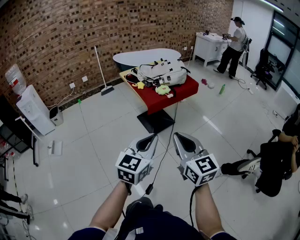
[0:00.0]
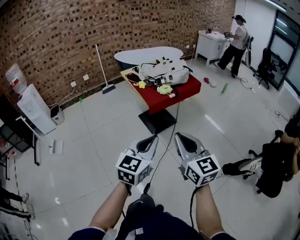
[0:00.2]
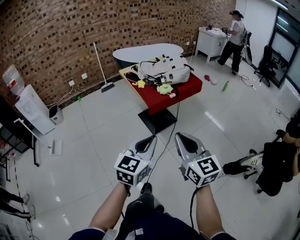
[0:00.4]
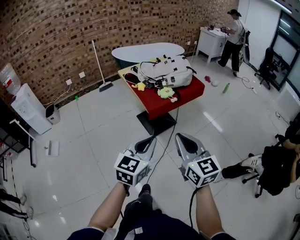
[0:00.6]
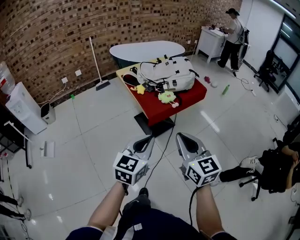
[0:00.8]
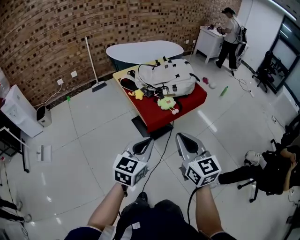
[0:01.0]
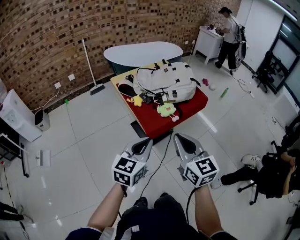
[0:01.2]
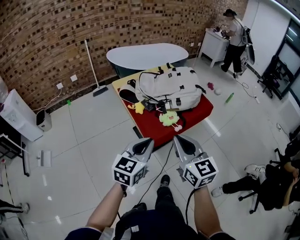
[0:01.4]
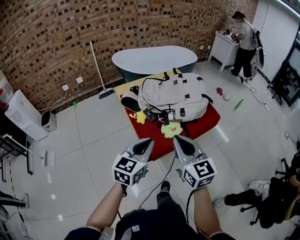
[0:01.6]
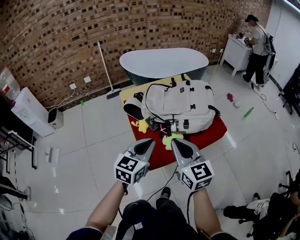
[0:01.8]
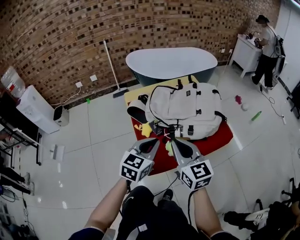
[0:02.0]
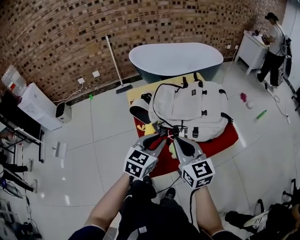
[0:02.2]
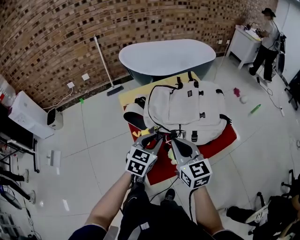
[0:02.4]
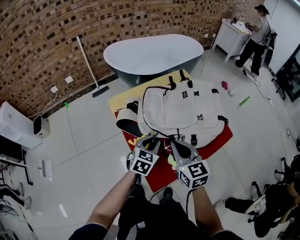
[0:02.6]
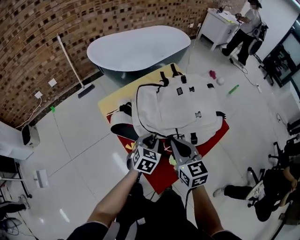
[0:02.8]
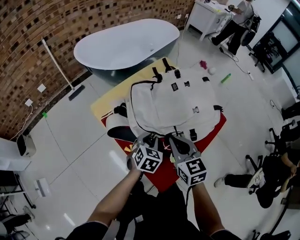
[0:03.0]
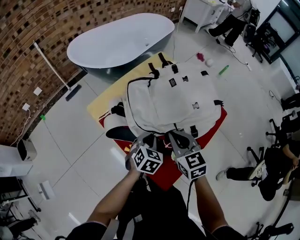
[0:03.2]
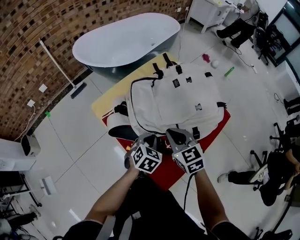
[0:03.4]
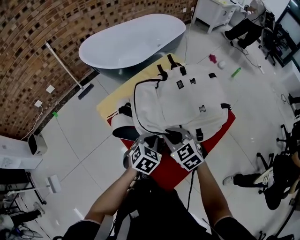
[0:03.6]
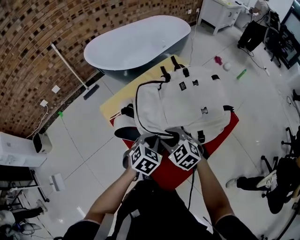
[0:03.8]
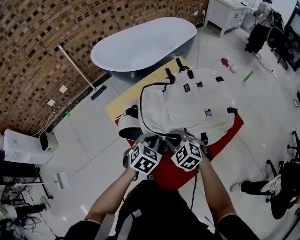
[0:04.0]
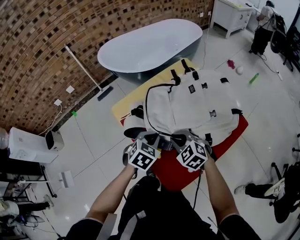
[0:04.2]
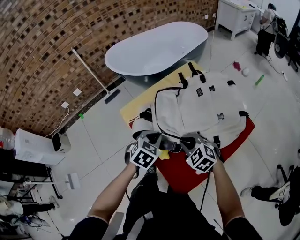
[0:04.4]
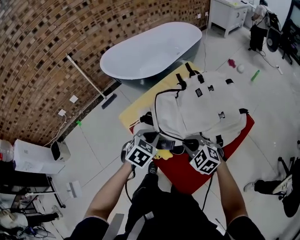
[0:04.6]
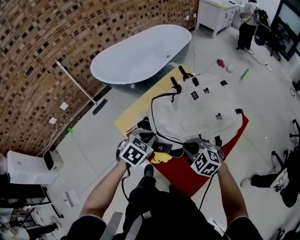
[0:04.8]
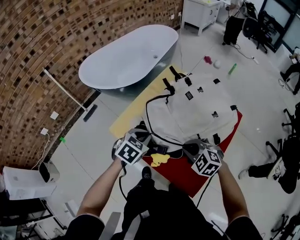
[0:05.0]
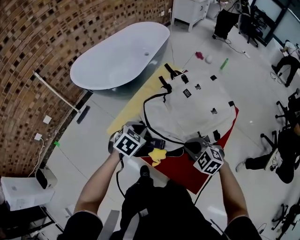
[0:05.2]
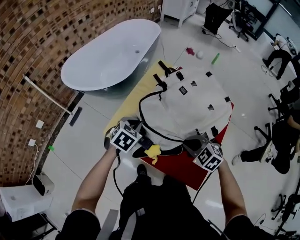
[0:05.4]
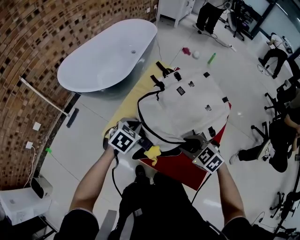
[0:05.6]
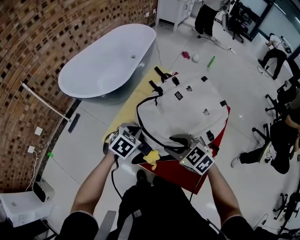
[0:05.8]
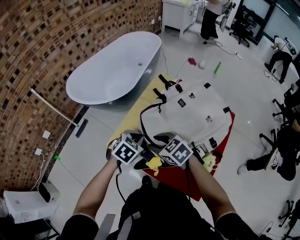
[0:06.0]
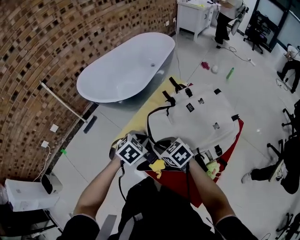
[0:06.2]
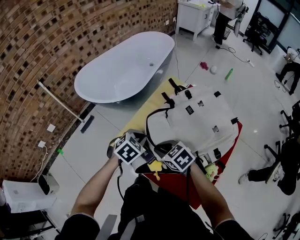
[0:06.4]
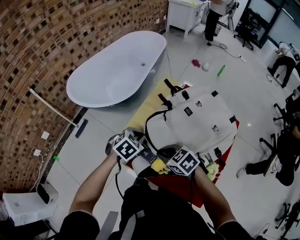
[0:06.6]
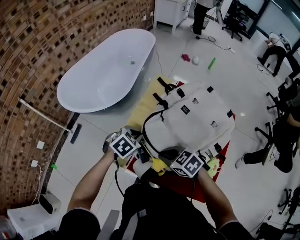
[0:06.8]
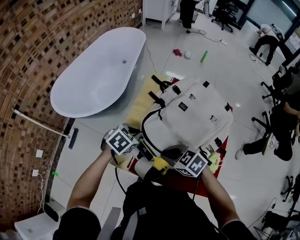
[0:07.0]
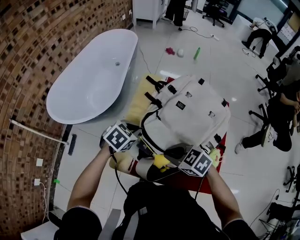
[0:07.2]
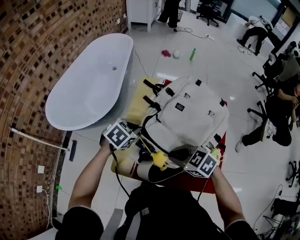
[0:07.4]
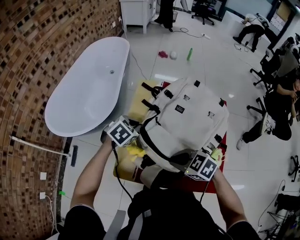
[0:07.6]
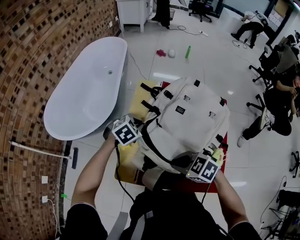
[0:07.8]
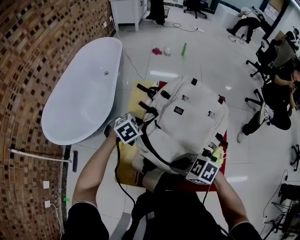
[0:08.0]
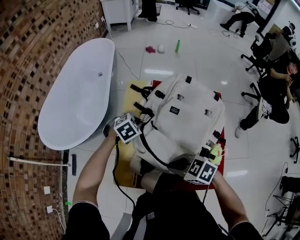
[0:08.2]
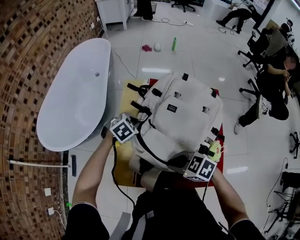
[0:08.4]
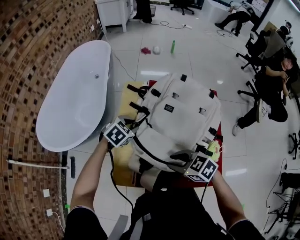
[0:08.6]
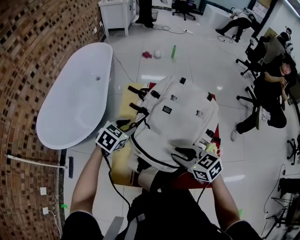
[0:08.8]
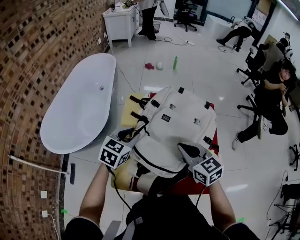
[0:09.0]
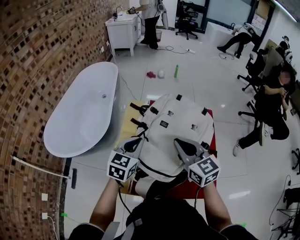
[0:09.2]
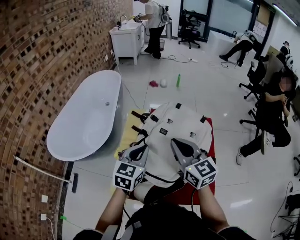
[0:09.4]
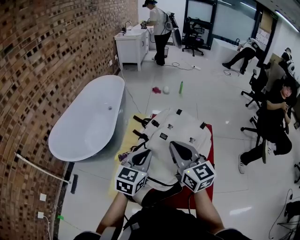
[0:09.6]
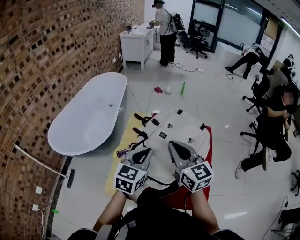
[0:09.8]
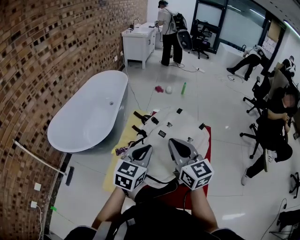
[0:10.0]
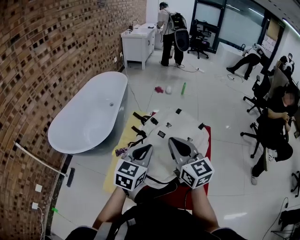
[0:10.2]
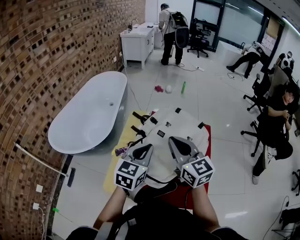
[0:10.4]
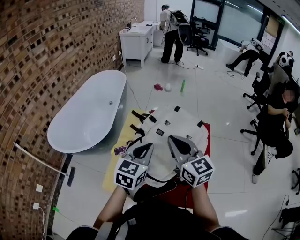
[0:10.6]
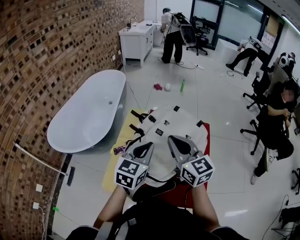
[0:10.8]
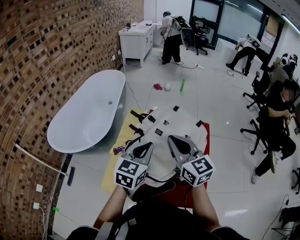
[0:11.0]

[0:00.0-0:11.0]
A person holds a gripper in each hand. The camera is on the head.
0:00.0 to 0:01.6: The two grippers travel together, forward, roughly 40 cm.
0:01.6 to 0:03.2: Both grippers move forward and downward, approximately 30 cm. The right gripper turns by roughly 30 degrees; the left gripper points its fingers approximately 30 degrees further downward.
0:03.2 to 0:04.8: The left gripper travels to the left, upward and forward by about 15 cm. The right gripper heads downward, covering about 5 cm, swivels approximately 40 degrees, and opens, then closes once more.
0:04.8 to 0:06.2: The right gripper moves to the left and forward, some 15 cm, changes its angle by approximately 30 degrees, and opens, then closes again; the left gripper goes about 10 cm forward.
0:06.2 to 0:07.8: The left gripper changes place by about 15 cm, and changes its angle by some 30 degrees.
0:07.8 to 0:09.4: Both grippers travel together upward, some 15 cm. The right gripper tilts its fingers approximately 40 degrees upward, while the left gripper angles its fingers upward, by roughly 40 degrees, and opens and closes again.
0:09.4 to 0:11.0: The left gripper is displaced to the right by about 5 cm.

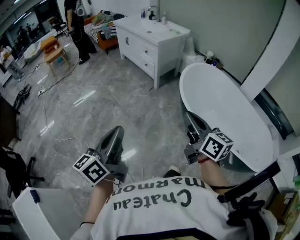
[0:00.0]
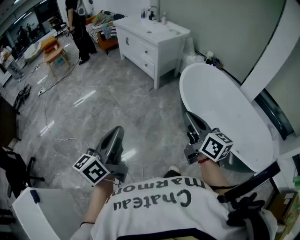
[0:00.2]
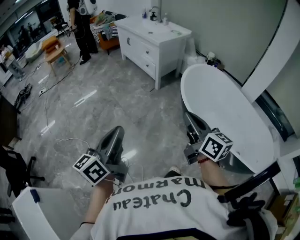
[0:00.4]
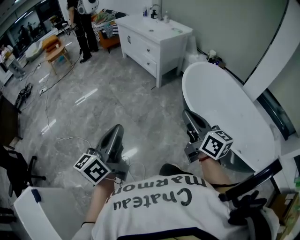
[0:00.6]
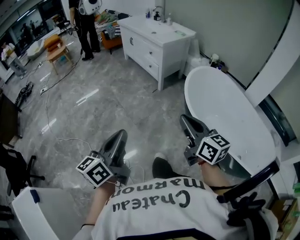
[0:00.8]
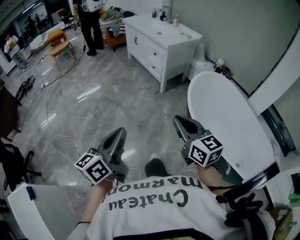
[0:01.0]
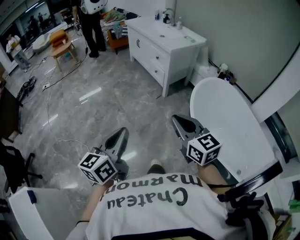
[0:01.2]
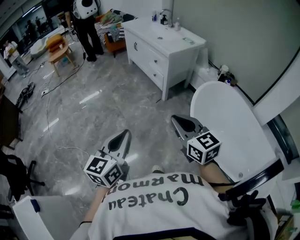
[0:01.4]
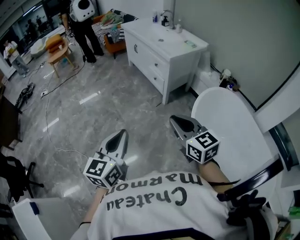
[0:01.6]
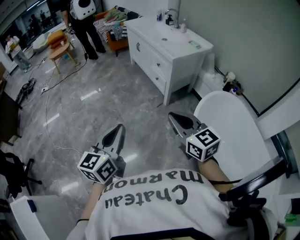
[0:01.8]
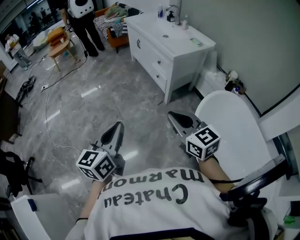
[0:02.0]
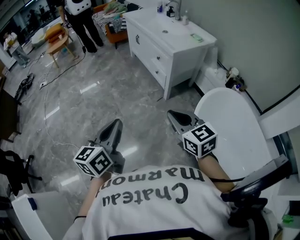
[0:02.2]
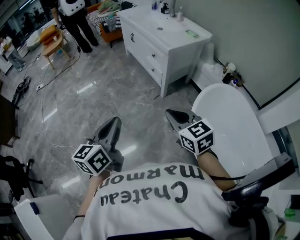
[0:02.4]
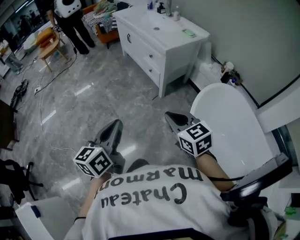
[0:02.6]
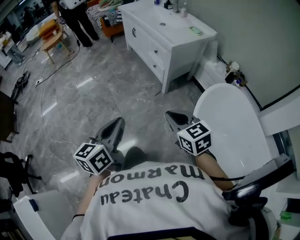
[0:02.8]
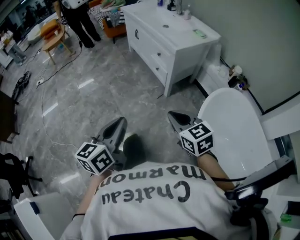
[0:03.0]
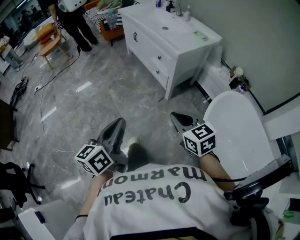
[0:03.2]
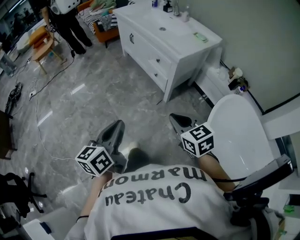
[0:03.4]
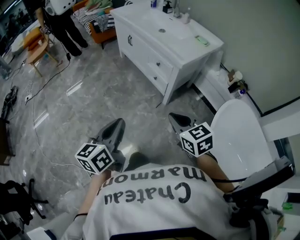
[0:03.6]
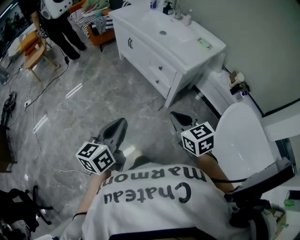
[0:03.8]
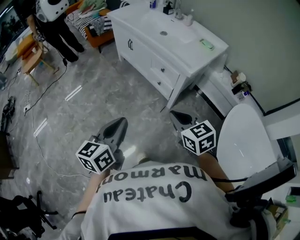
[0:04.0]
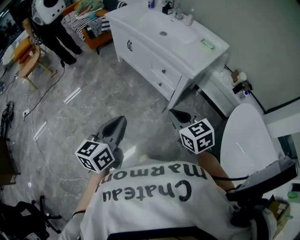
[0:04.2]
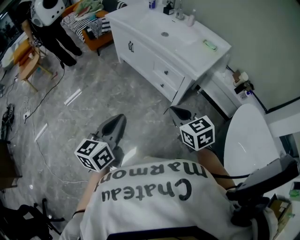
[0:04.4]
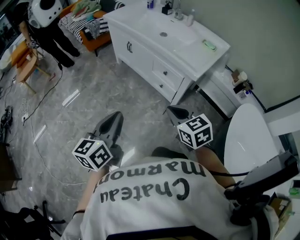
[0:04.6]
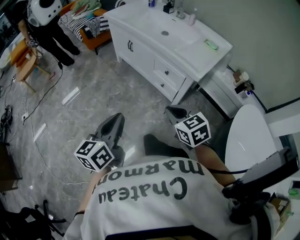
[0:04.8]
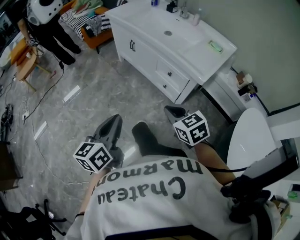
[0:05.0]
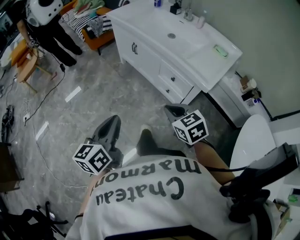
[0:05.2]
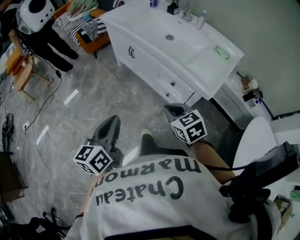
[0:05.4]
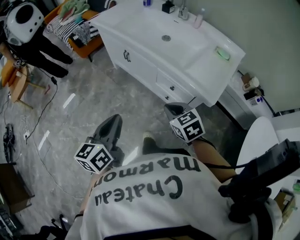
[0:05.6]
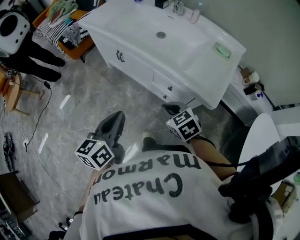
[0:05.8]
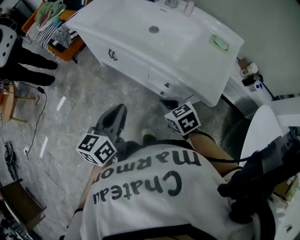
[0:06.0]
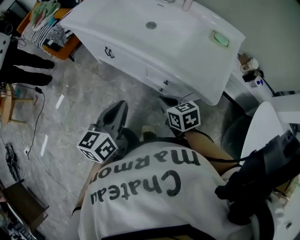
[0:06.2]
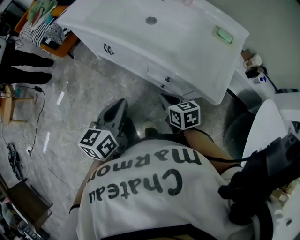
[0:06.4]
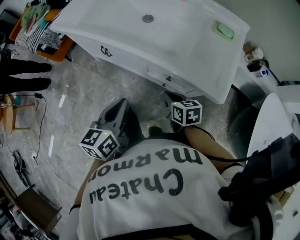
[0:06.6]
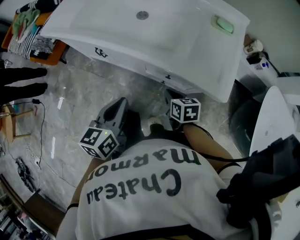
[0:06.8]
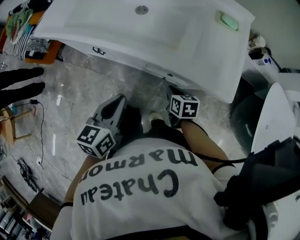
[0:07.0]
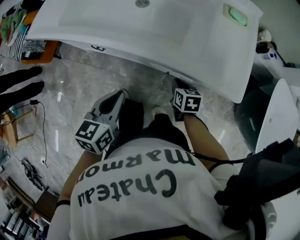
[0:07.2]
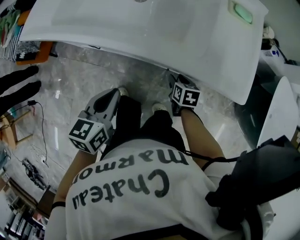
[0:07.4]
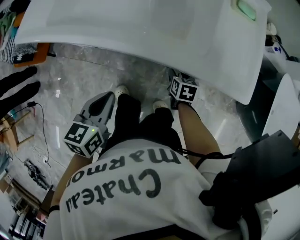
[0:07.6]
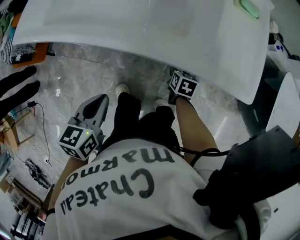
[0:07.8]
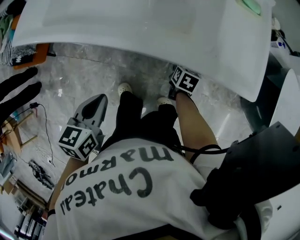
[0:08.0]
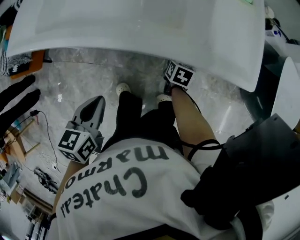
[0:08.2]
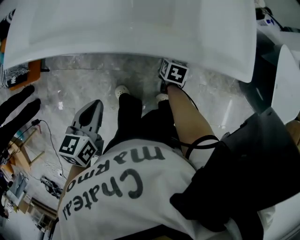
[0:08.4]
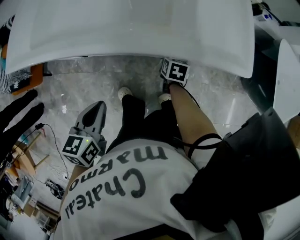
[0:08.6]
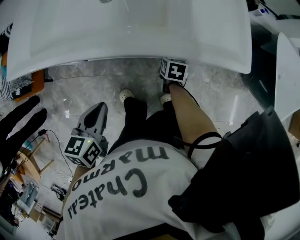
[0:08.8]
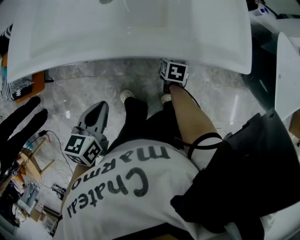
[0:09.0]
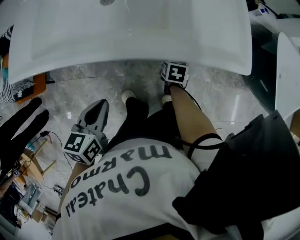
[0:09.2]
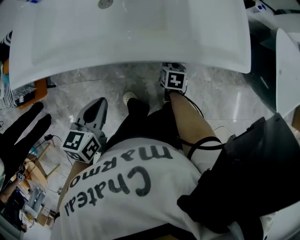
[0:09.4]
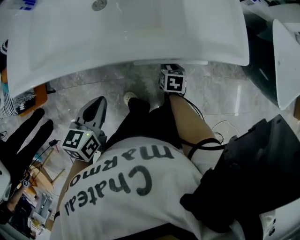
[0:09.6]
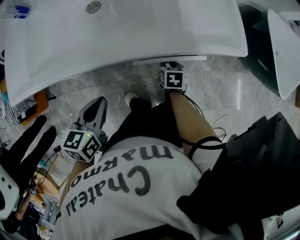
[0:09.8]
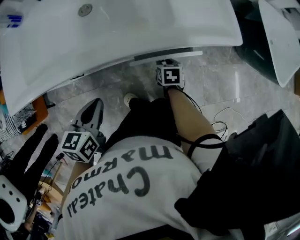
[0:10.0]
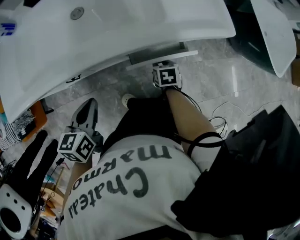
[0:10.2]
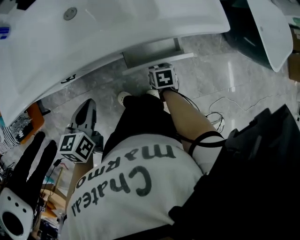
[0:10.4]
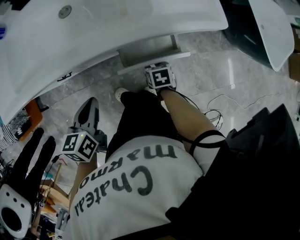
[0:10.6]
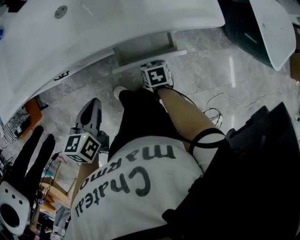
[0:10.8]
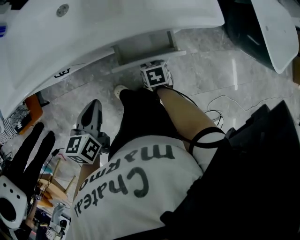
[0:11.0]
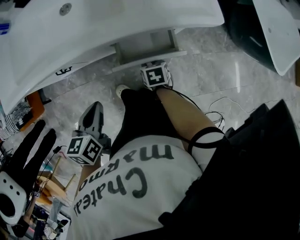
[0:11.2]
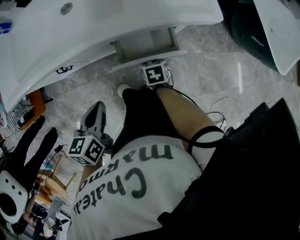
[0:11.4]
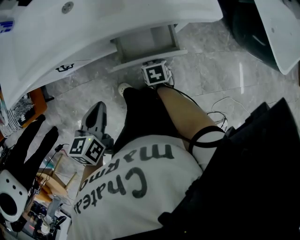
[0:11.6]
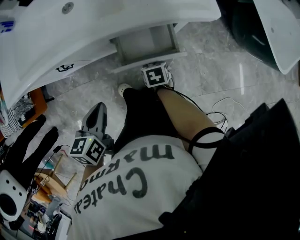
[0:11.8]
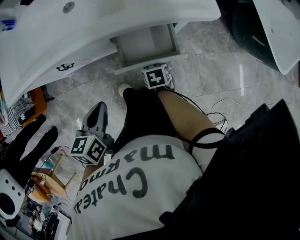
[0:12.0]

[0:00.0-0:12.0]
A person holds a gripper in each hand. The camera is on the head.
0:00.0 to 0:01.6: Both grippers move forward, approximately 25 cm. The right gripper turns by some 30 degrees, while the left gripper turns by approximately 30 degrees.
0:01.6 to 0:03.0: The left gripper moves forward, about 15 cm. The right gripper heads forward and downward, covering about 15 cm.
0:03.0 to 0:04.4: Both grippers move forward and to the left, roughly 35 cm.
0:04.4 to 0:06.0: The left gripper shifts some 35 cm forward. Meanwhile the right gripper heads forward and downward, covering about 35 cm.
0:06.0 to 0:07.6: The right gripper goes approximately 20 cm downward, twists roughly 50 degrees clockwise, seen from behind, and opens up. Meanwhile the left gripper ends up roughly 20 cm from where it was, and swivels roughly 30 degrees.
0:07.6 to 0:09.0: The grippers stay close to where they were, moving slightly.
0:09.0 to 0:10.4: The right gripper moves backward, about 10 cm.
0:10.4 to 0:12.0: The left gripper goes some 10 cm to the right and backward.

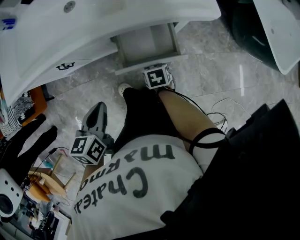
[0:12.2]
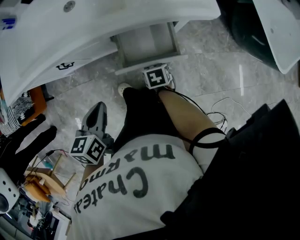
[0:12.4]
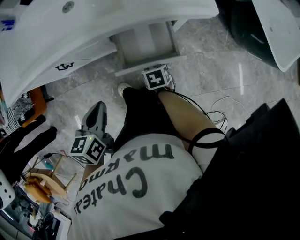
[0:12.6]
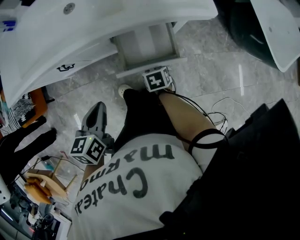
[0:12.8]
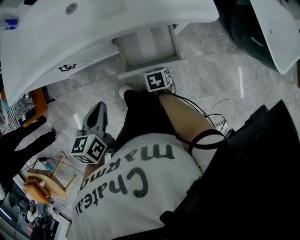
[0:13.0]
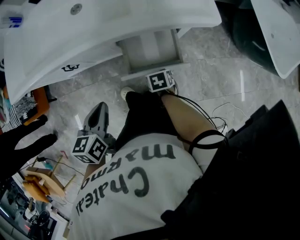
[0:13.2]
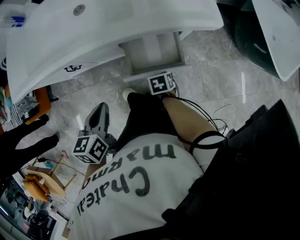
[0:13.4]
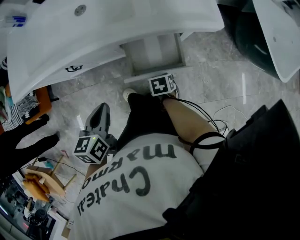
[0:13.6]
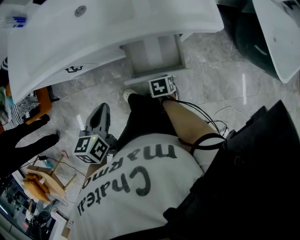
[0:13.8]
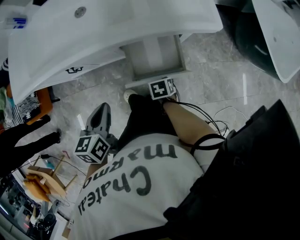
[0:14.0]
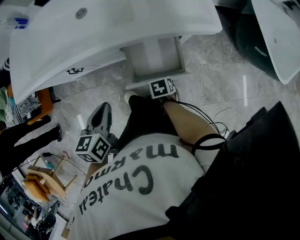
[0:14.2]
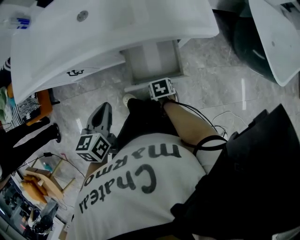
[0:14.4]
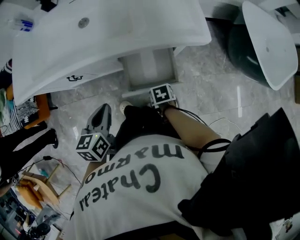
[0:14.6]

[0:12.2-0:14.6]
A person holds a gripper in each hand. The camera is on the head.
0:12.2 to 0:14.6: The grippers stay close to where they were, moving slightly.
